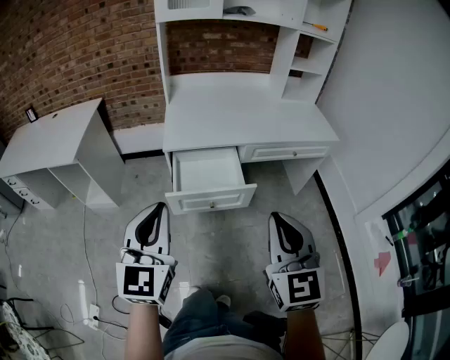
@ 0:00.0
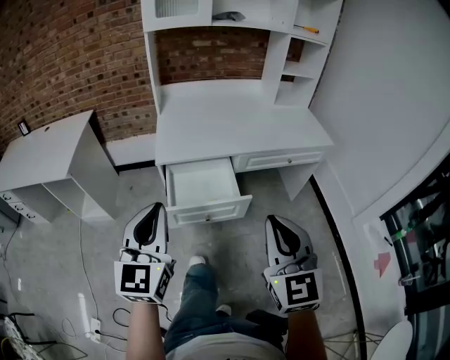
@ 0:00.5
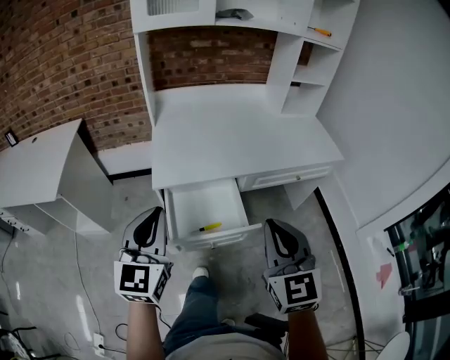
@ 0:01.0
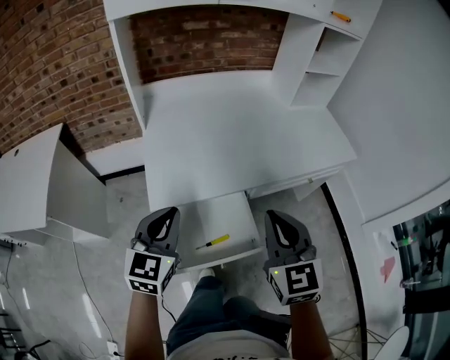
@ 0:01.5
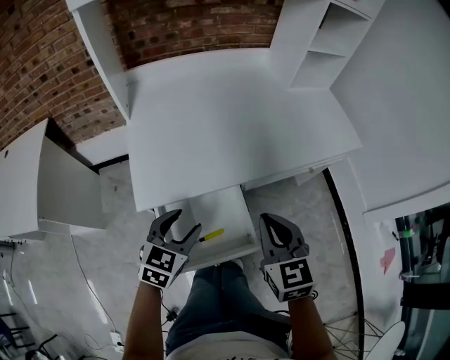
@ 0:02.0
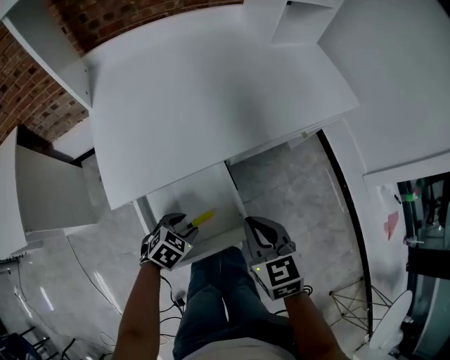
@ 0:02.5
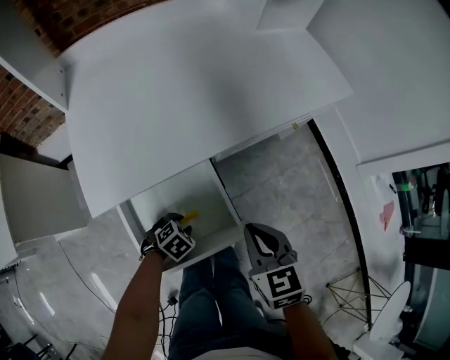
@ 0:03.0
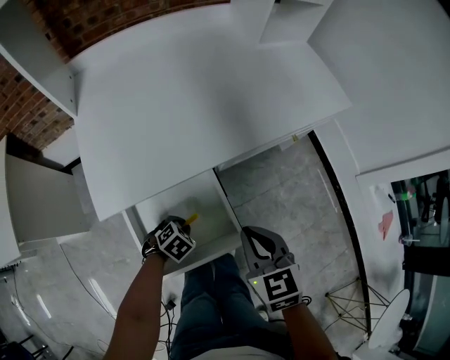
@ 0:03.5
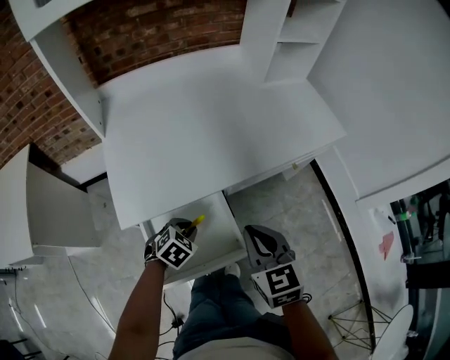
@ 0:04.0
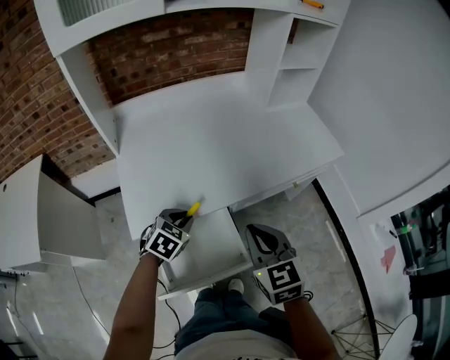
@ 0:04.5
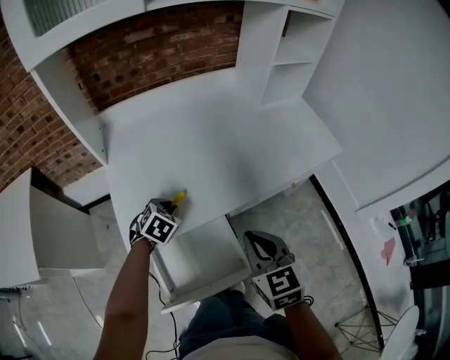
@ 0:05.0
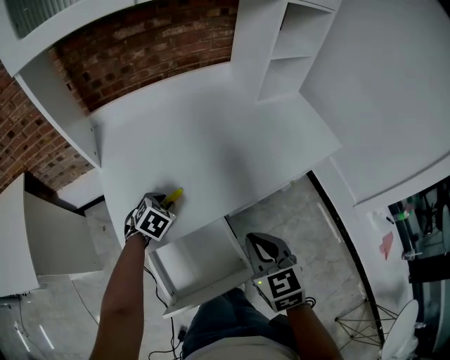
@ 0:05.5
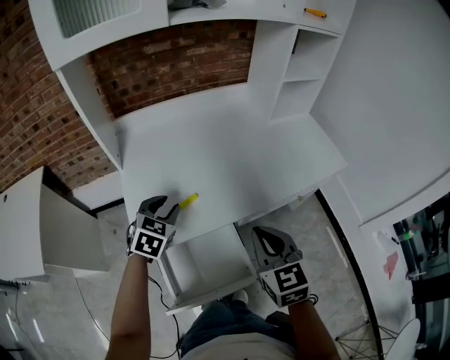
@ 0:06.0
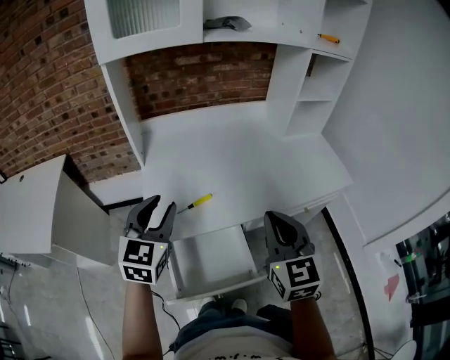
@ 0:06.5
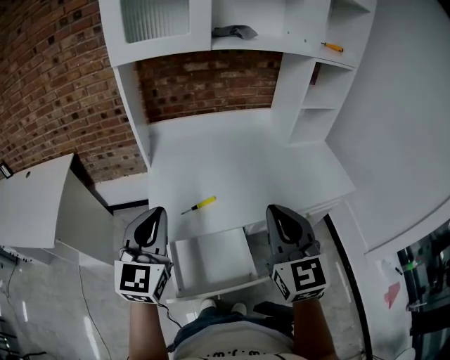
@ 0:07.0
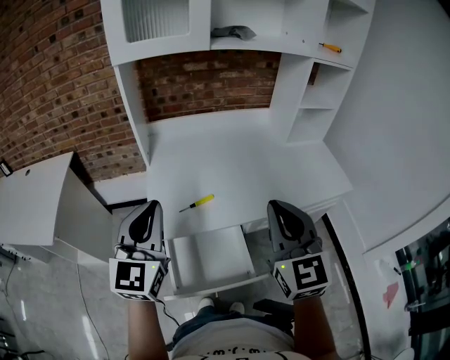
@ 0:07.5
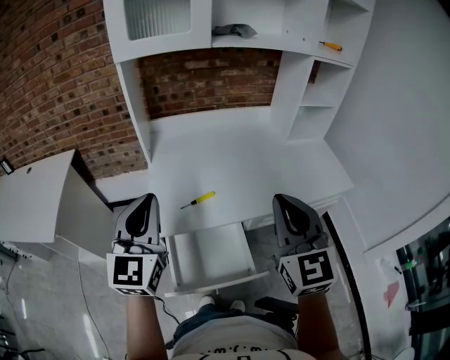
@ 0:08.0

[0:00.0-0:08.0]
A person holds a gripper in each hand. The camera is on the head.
0:00.0 to 0:02.0: The right gripper is displaced forward by roughly 35 cm, and rotates some 20 degrees; the left gripper travels forward and downward by about 40 cm, tilts its fingers some 30 degrees downward, and opens.
0:02.0 to 0:04.0: The left gripper is displaced downward by some 15 cm, rotates about 30 degrees, and closes its fingers. The right gripper travels downward and back again, some 15 cm each way.
0:04.0 to 0:06.0: The right gripper goes some 10 cm forward and upward, while the left gripper shifts some 25 cm upward, forward and to the left, and rotates about 30 degrees.
0:06.0 to 0:08.0: The right gripper moves upward, some 15 cm, and swivels roughly 30 degrees; the left gripper goes some 30 cm upward and backward, tips its fingers upward by approximately 40 degrees, and closes its fingers.

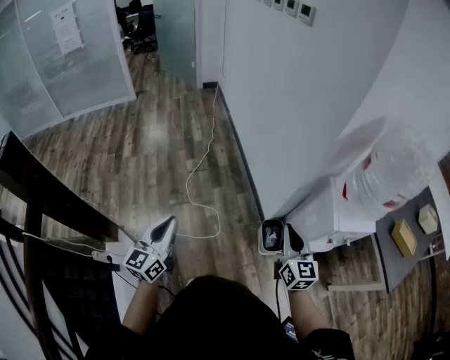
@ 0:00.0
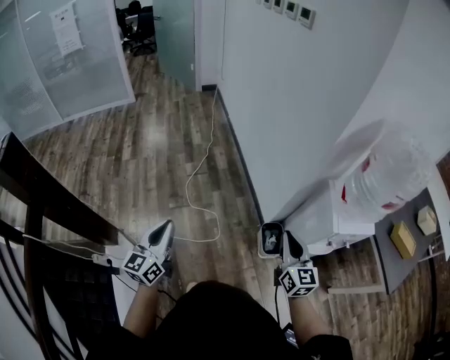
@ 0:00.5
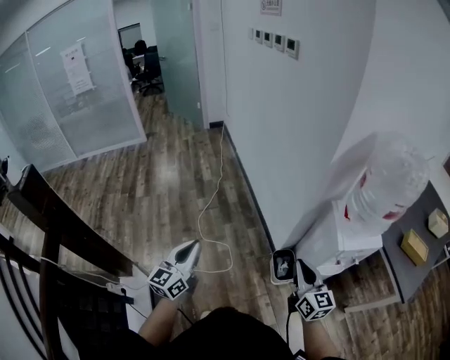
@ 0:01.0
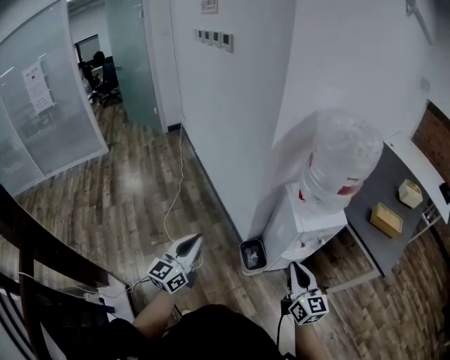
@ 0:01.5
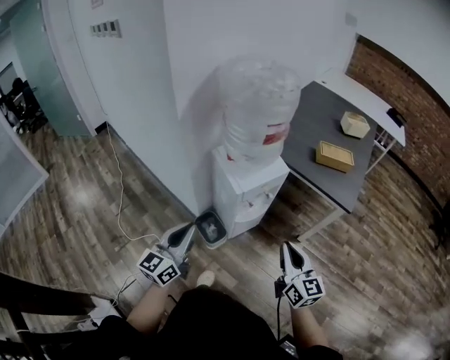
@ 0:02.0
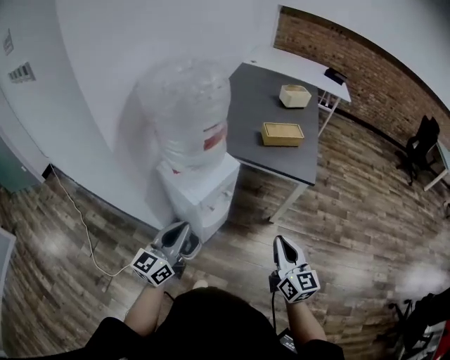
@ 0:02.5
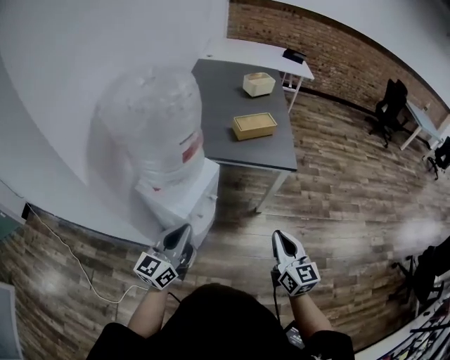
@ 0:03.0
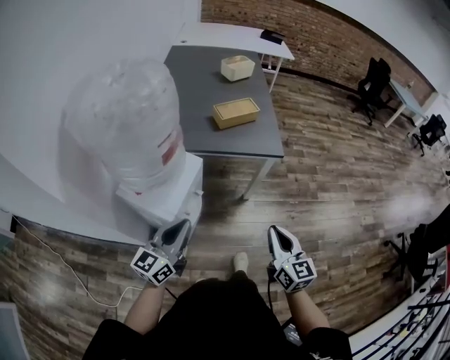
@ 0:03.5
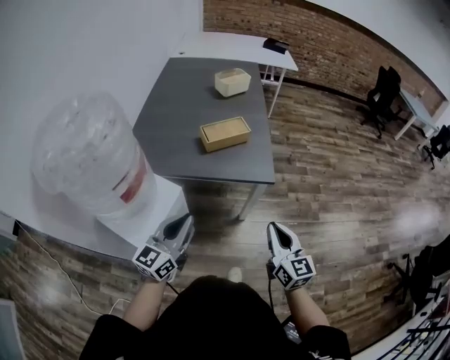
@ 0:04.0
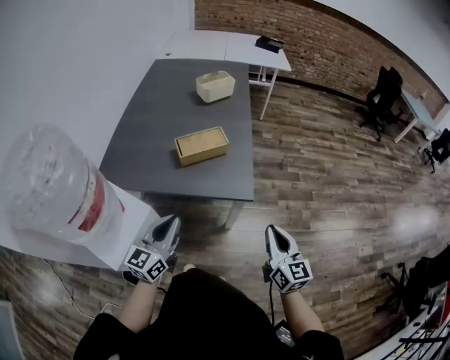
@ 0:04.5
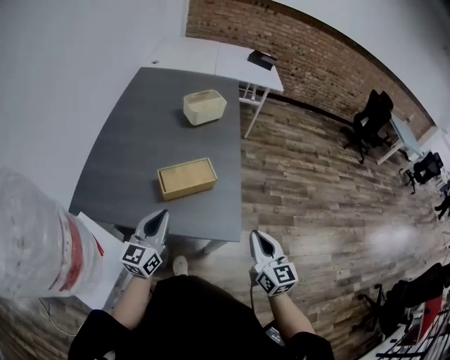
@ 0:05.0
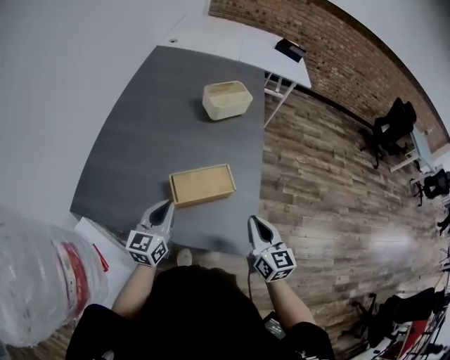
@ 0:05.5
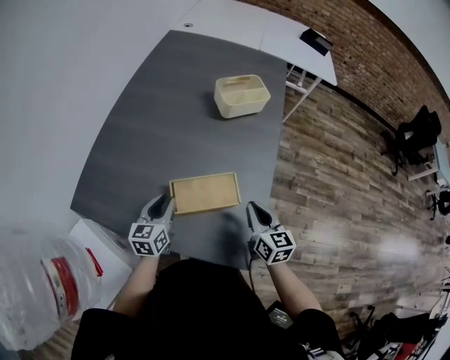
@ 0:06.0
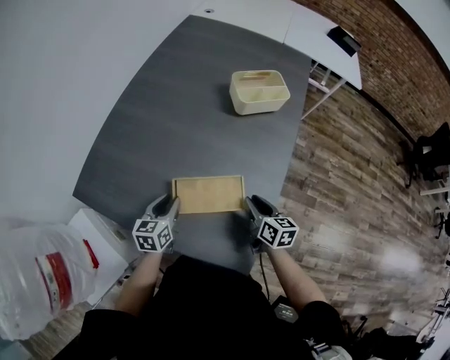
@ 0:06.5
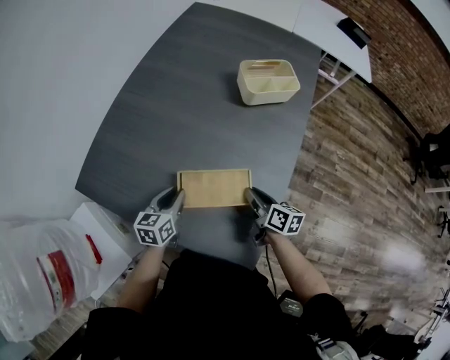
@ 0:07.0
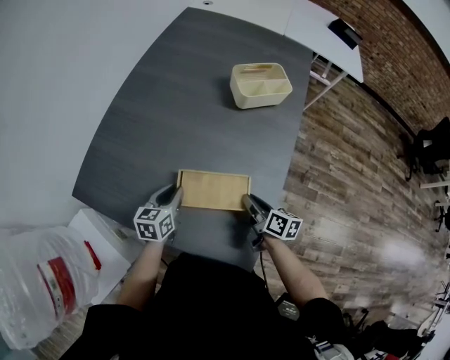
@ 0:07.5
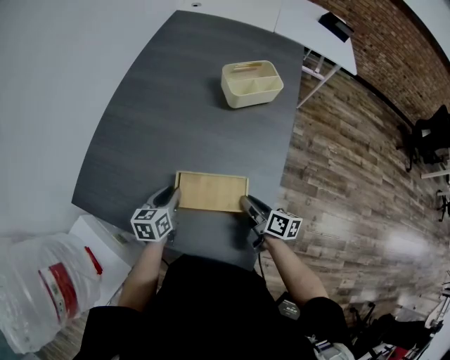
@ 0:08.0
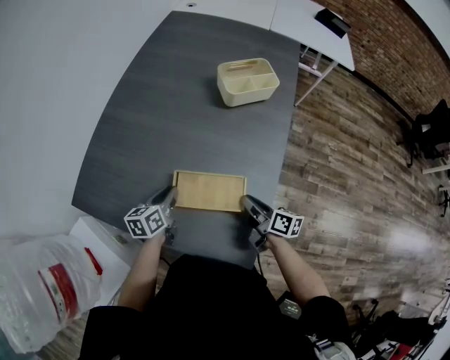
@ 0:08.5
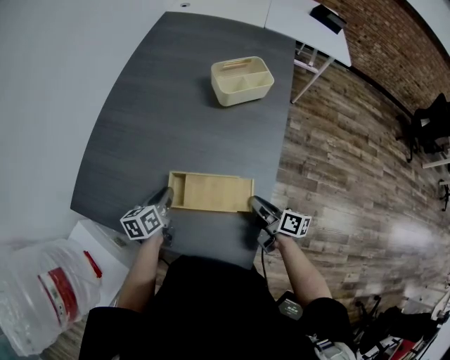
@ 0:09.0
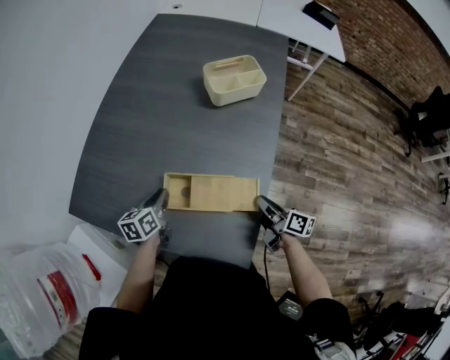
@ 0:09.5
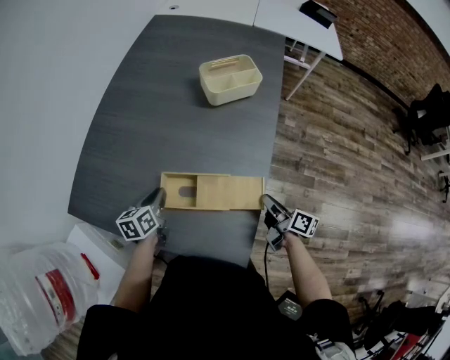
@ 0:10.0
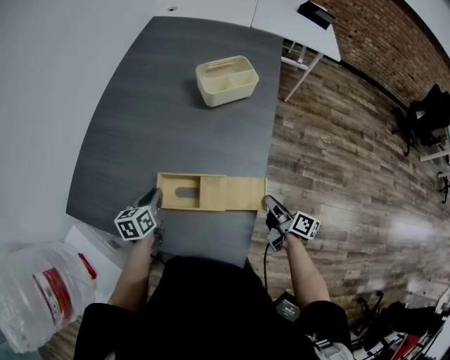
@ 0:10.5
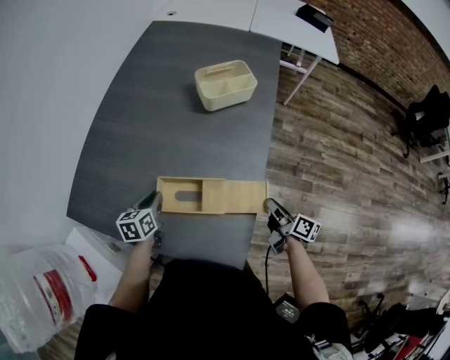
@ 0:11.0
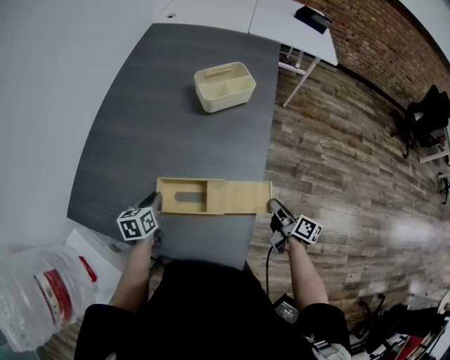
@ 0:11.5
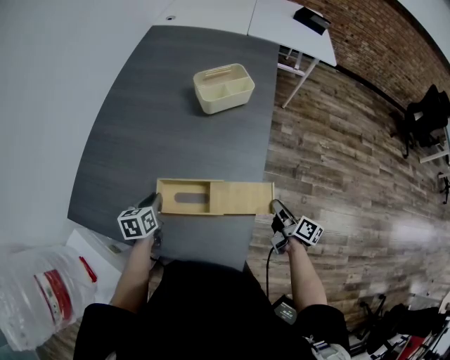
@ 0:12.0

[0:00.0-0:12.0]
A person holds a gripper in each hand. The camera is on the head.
0:00.0 to 0:02.0: The left gripper shifts by about 35 cm, and turns by roughly 40 degrees; the right gripper changes place by some 35 cm, and turns by roughly 30 degrees.
0:02.0 to 0:04.0: The left gripper changes place by roughly 35 cm, and swivels about 40 degrees. Meanwhile the right gripper shifts by about 20 cm, and rotates about 30 degrees.
0:04.0 to 0:06.0: Both grippers travel together forward, roughly 40 cm. The right gripper changes its angle by some 20 degrees; the left gripper rotates some 40 degrees, and opens its fingers.
0:06.0 to 0:08.0: The right gripper goes some 10 cm downward, and rotates about 40 degrees.
0:08.0 to 0:10.0: The right gripper heads to the right, covering approximately 10 cm.
0:10.0 to 0:12.0: The right gripper goes approximately 5 cm to the right.

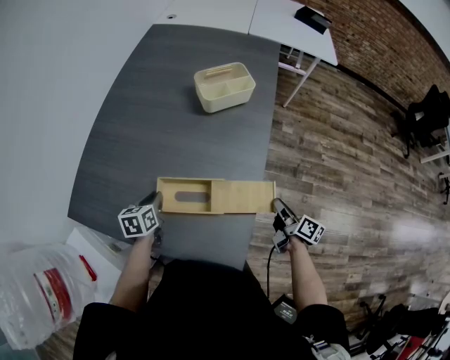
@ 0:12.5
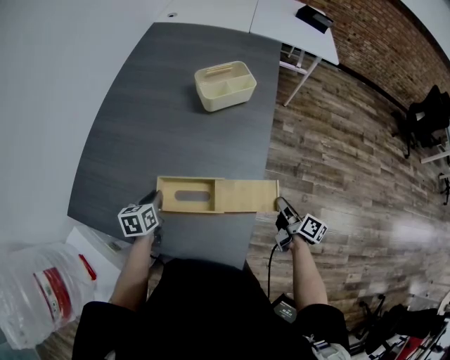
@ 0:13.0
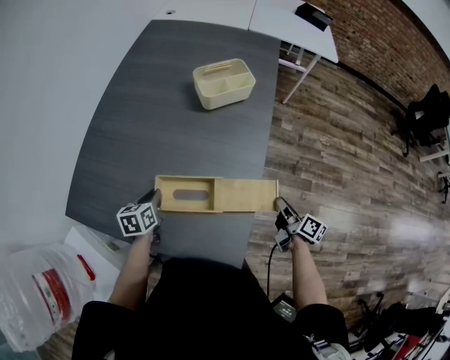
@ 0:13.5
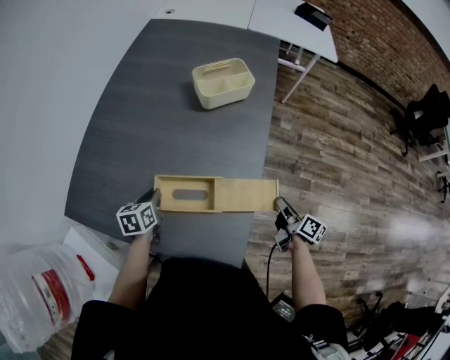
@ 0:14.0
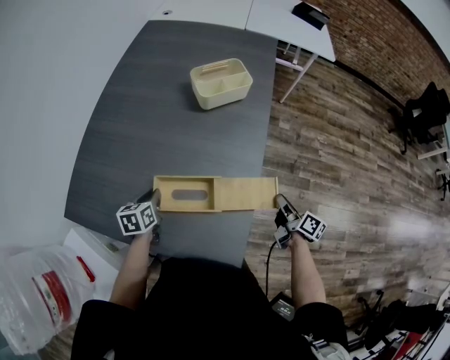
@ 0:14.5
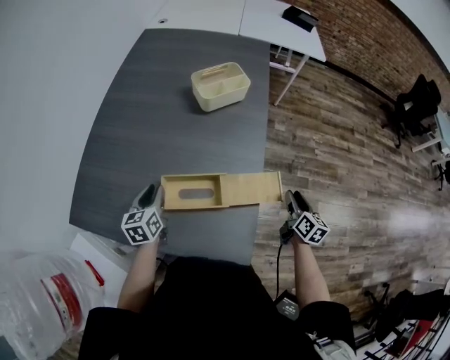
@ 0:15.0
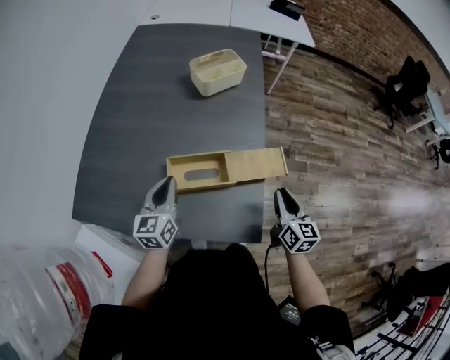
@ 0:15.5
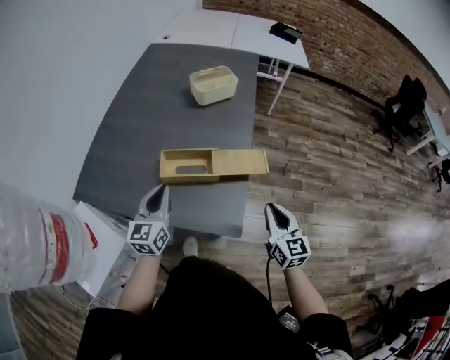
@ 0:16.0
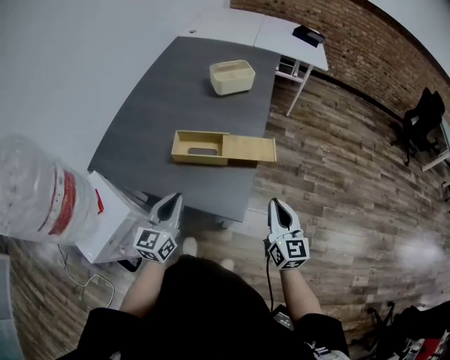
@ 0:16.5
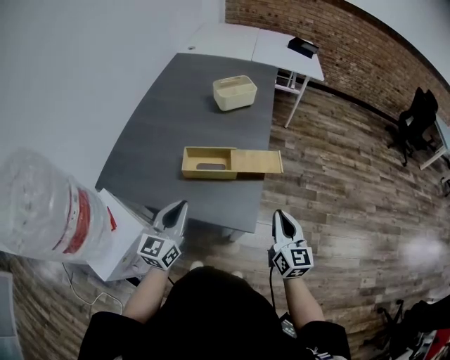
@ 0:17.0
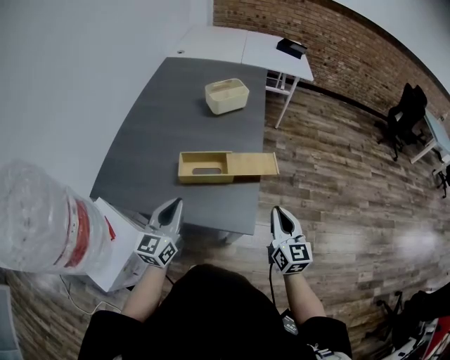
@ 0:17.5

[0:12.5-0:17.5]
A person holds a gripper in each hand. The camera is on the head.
0:12.5 to 0:15.0: The right gripper ends up roughly 5 cm from where it was, turns by some 30 degrees, and opens.
0:15.0 to 0:17.5: The right gripper goes about 25 cm backward, upward and to the left, turns by approximately 30 degrees, and closes up; the left gripper is displaced backward and upward by about 20 cm, swivels approximately 30 degrees, and closes up.

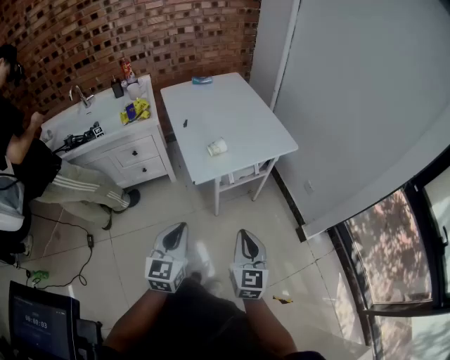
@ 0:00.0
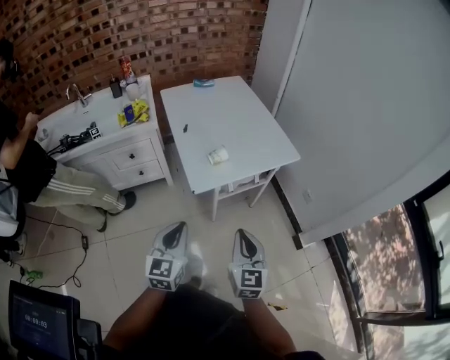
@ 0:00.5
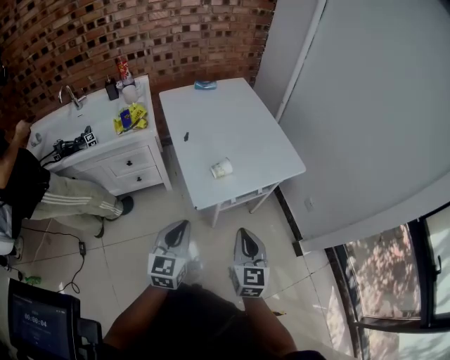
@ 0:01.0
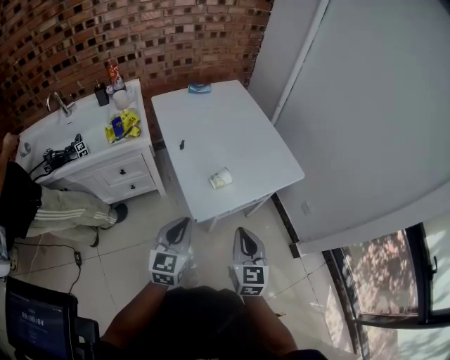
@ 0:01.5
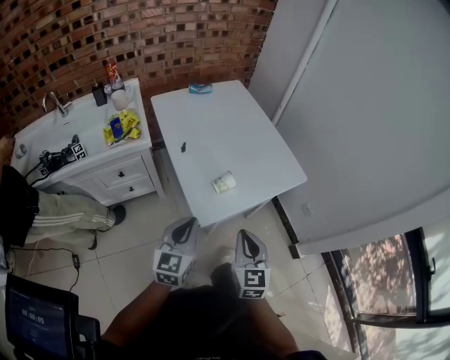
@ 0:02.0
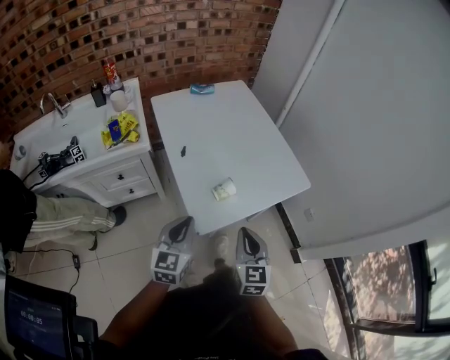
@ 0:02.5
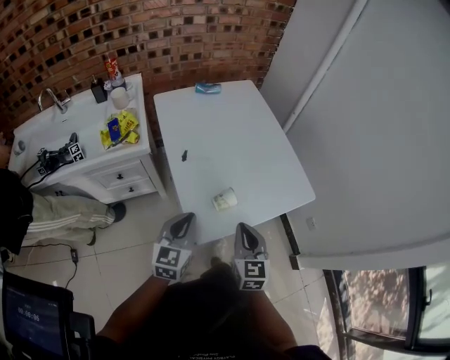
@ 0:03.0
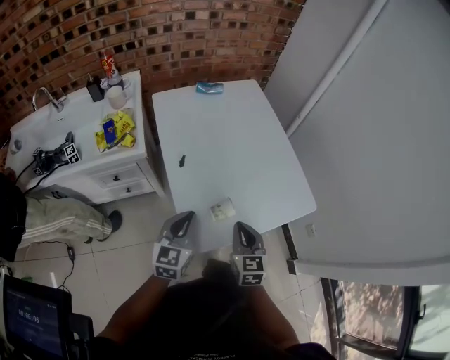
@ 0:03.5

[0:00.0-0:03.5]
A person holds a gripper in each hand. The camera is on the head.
0:00.0 to 0:02.0: The right gripper moves forward and to the left, some 20 cm. Meanwhile the left gripper goes about 20 cm forward.
0:02.0 to 0:03.5: The right gripper goes about 20 cm forward and downward, while the left gripper is displaced forward by some 15 cm.
